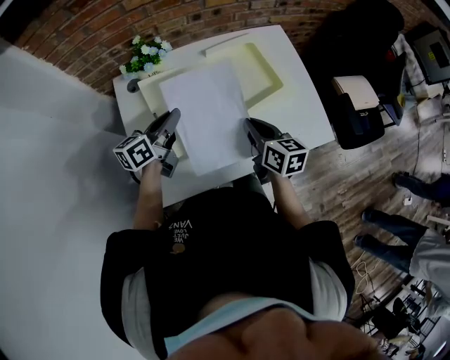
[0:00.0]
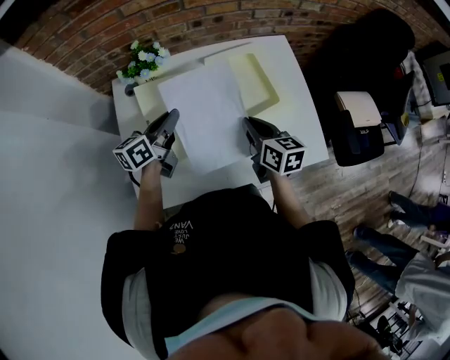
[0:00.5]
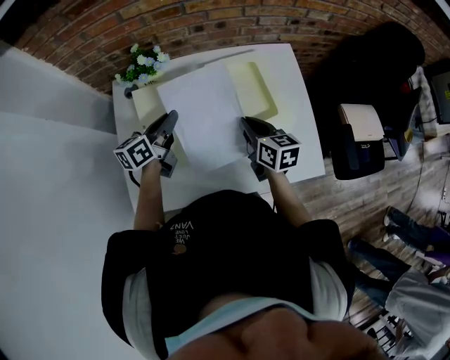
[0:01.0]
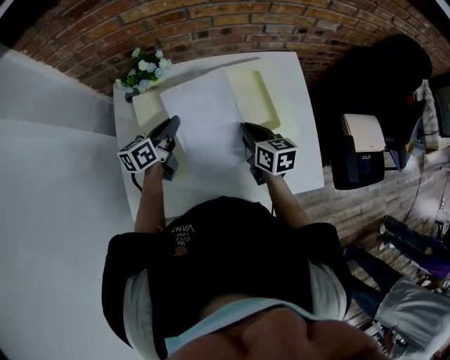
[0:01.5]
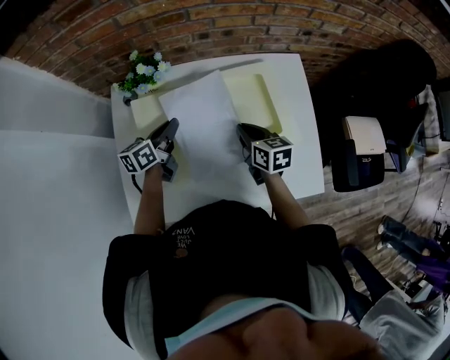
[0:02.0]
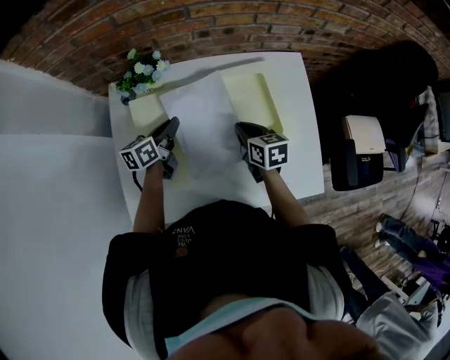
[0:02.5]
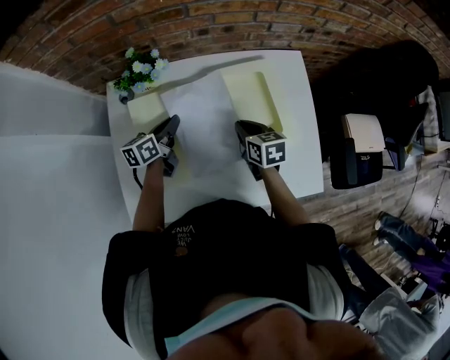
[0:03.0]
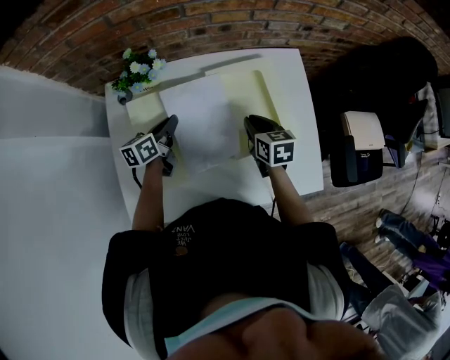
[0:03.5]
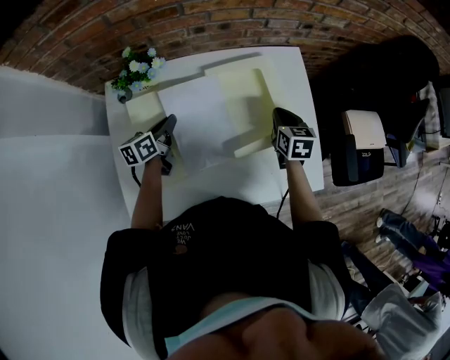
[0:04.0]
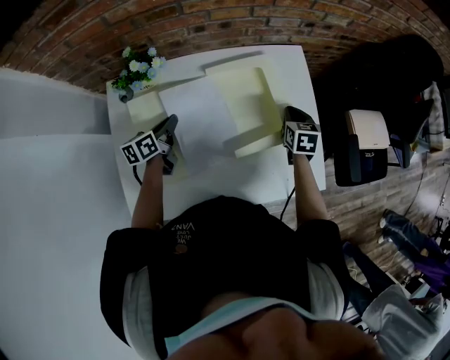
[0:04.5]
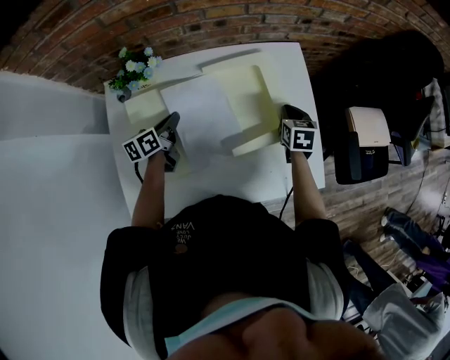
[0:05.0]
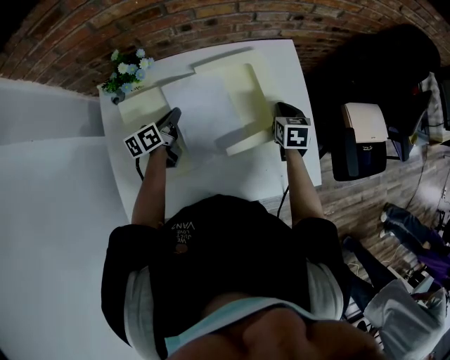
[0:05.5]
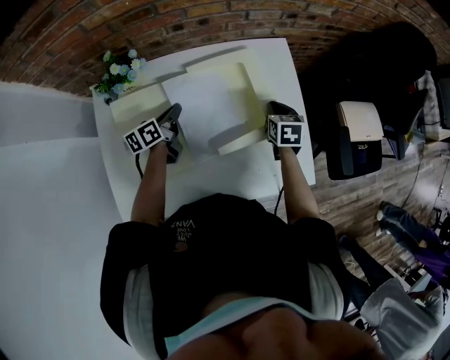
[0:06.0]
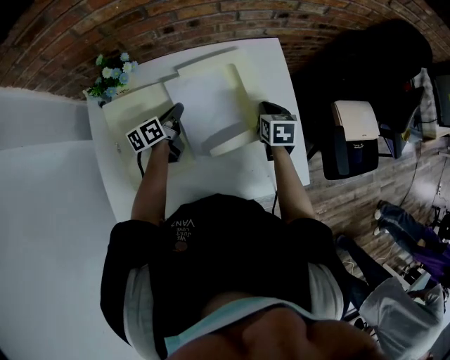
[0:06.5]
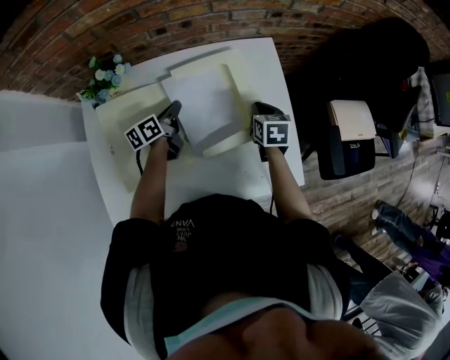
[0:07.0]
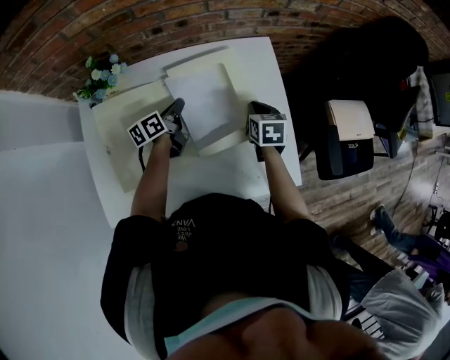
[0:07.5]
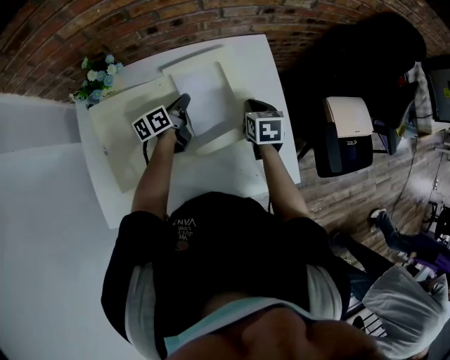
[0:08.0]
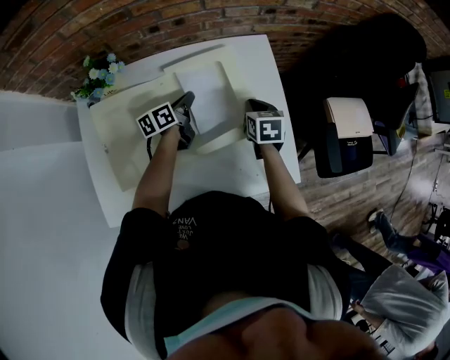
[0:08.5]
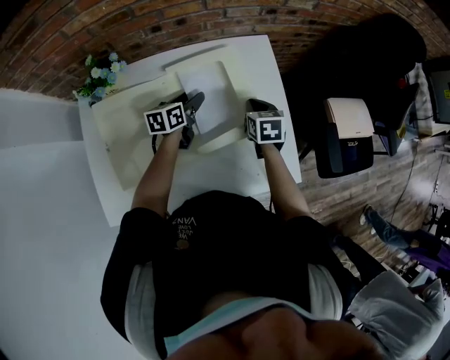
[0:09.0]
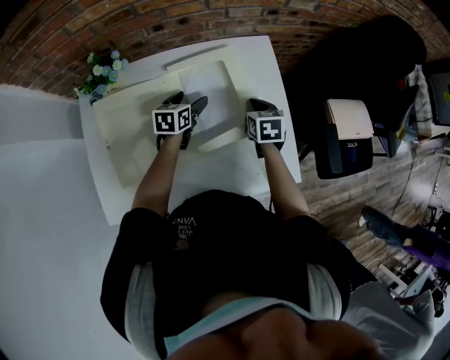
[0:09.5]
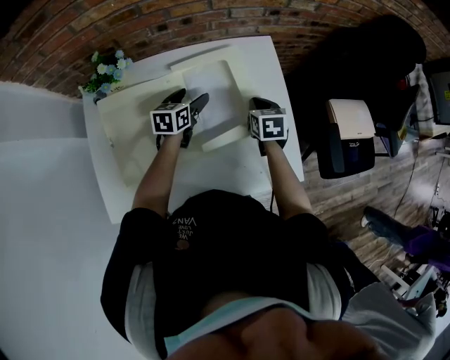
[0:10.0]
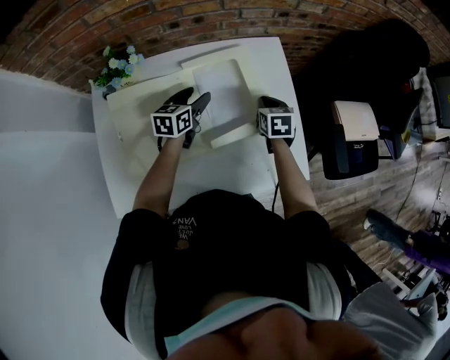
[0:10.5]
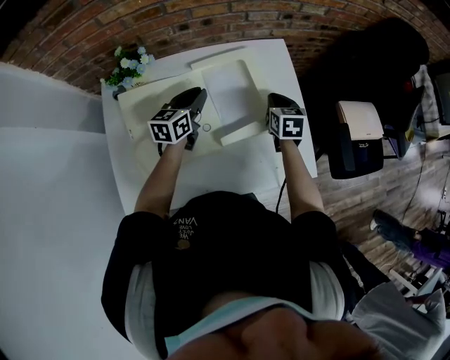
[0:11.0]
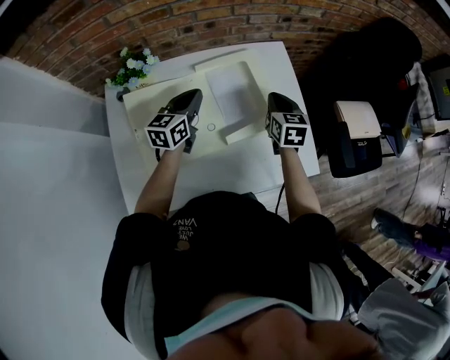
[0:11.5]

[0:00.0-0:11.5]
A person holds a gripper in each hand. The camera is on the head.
0:00.0 to 0:02.0: Both grippers travel together forward and downward, approximately 15 cm.
0:02.0 to 0:04.0: The right gripper shifts some 15 cm to the right, and changes its angle by some 20 degrees.
0:04.0 to 0:06.0: The left gripper goes some 5 cm to the right, while the right gripper ends up about 5 cm from where it was.
0:06.0 to 0:07.5: The left gripper moves to the right, approximately 5 cm.
0:07.5 to 0:09.5: The left gripper heads to the right, covering roughly 5 cm, swivels some 40 degrees, and opens.
0:09.5 to 0:11.5: The right gripper travels upward by roughly 10 cm; the left gripper travels upward, to the left and backward by about 15 cm, swivels approximately 20 degrees, and closes its fingers.

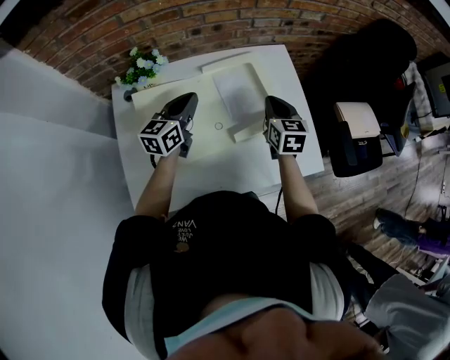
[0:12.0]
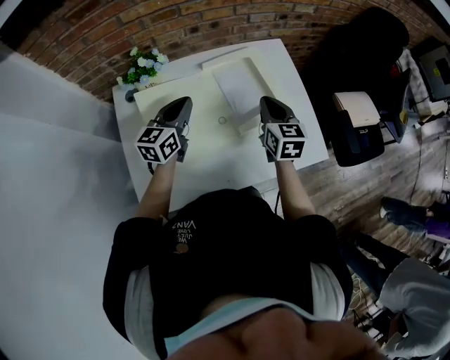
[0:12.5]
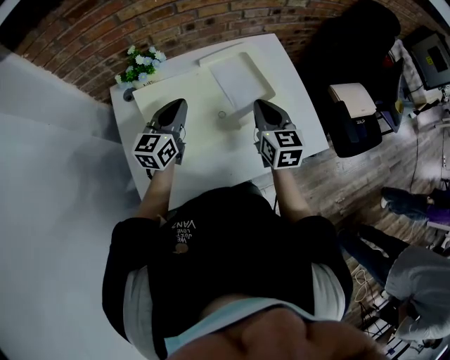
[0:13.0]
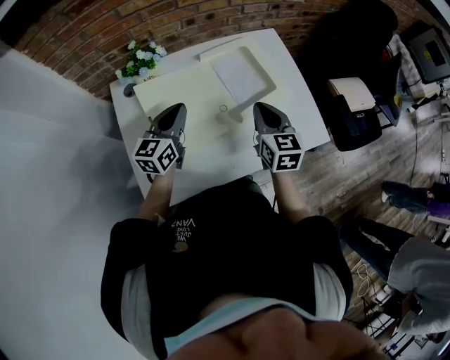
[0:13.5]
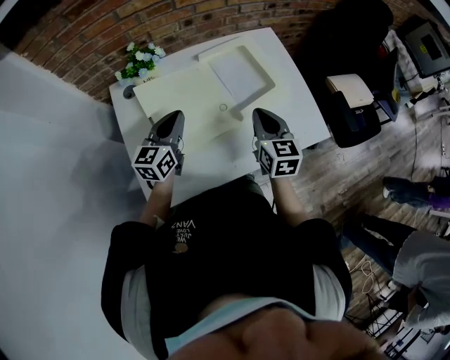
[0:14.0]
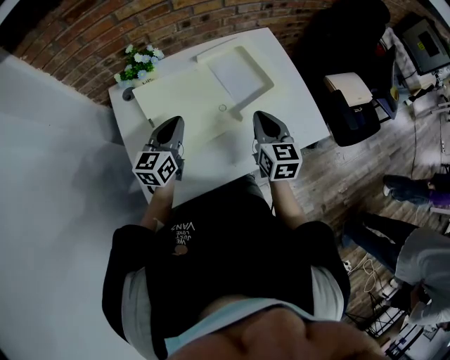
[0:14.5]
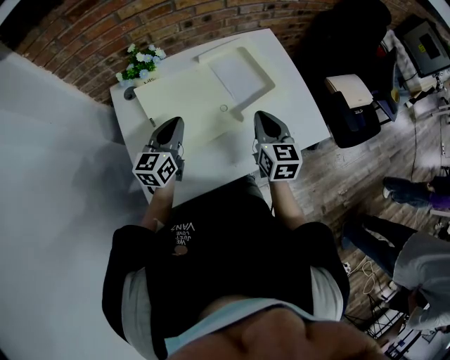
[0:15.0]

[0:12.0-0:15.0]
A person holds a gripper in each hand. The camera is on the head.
0:12.0 to 0:13.5: The right gripper is displaced backward and to the left by approximately 15 cm. Meanwhile the left gripper moves backward, about 10 cm.
0:13.5 to 0:15.0: The grippers move only a little.

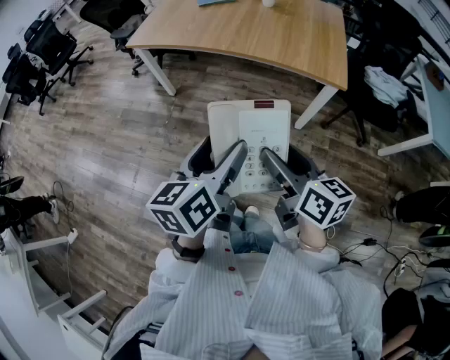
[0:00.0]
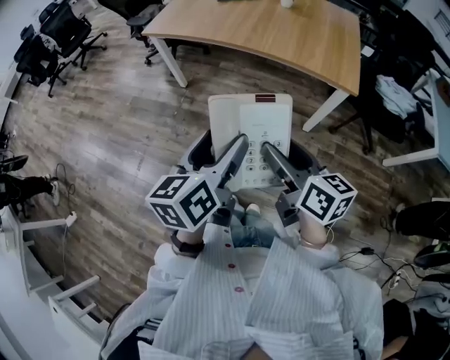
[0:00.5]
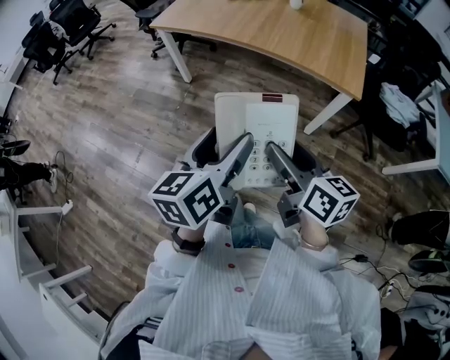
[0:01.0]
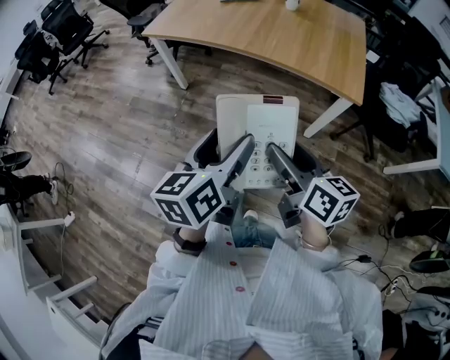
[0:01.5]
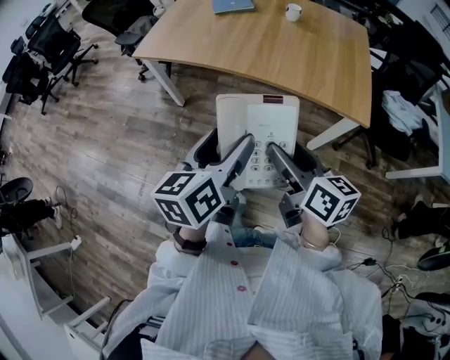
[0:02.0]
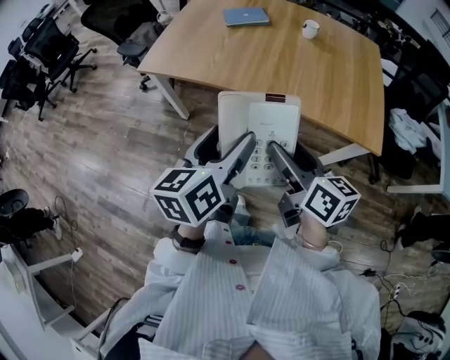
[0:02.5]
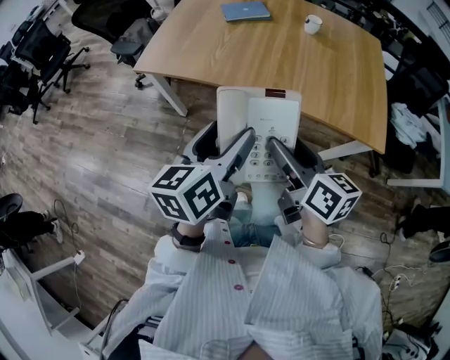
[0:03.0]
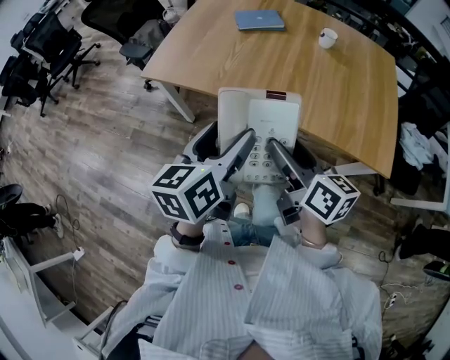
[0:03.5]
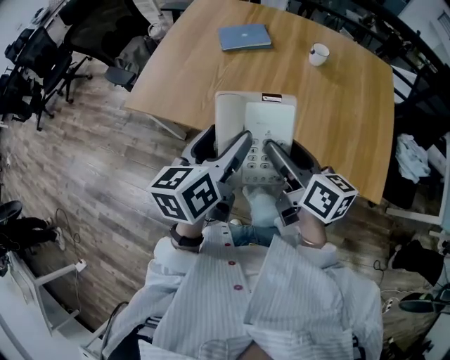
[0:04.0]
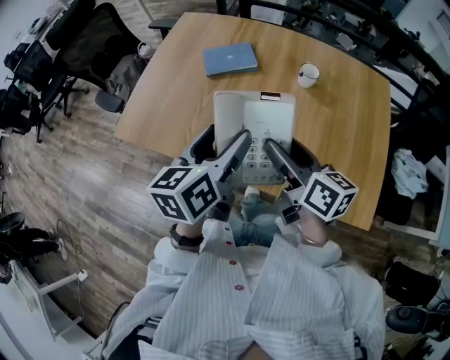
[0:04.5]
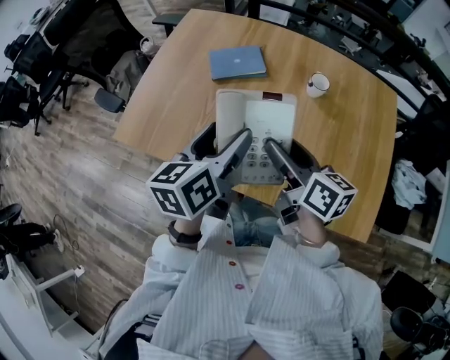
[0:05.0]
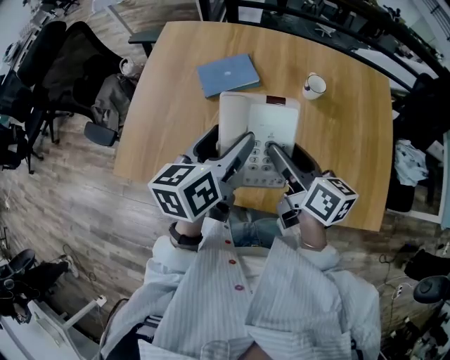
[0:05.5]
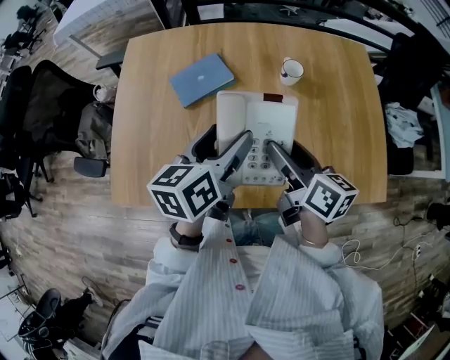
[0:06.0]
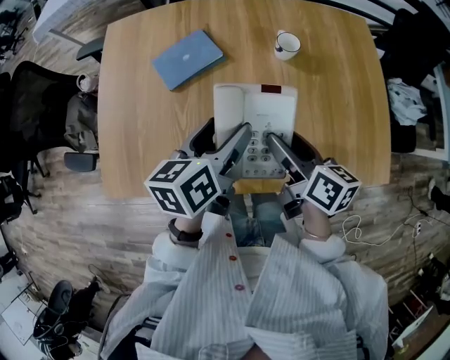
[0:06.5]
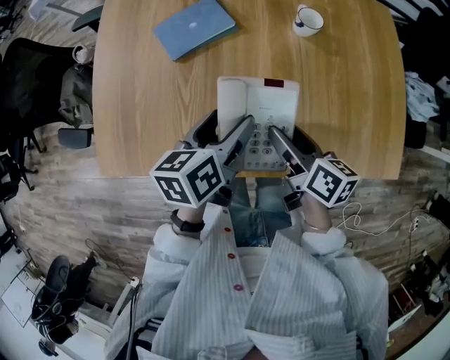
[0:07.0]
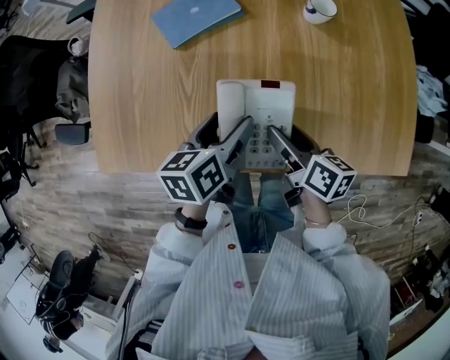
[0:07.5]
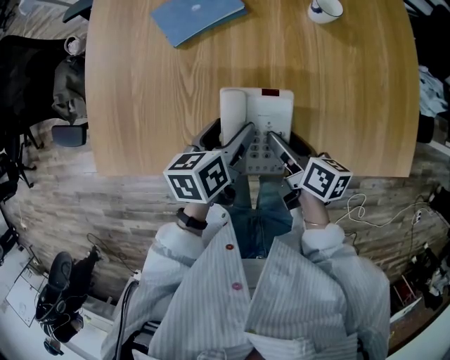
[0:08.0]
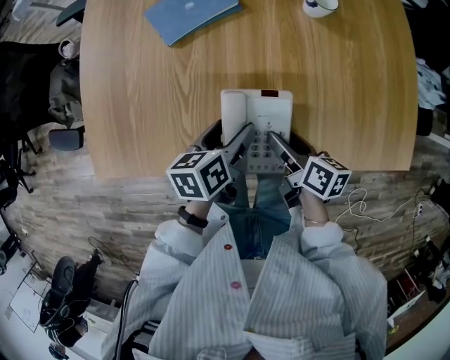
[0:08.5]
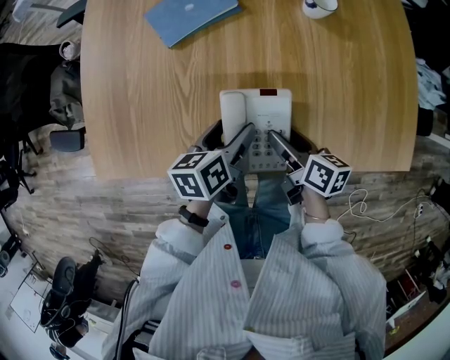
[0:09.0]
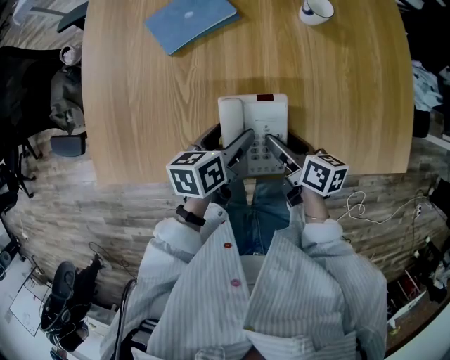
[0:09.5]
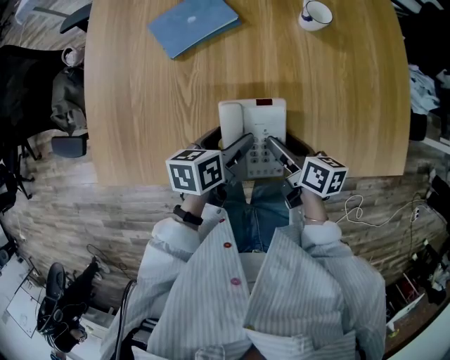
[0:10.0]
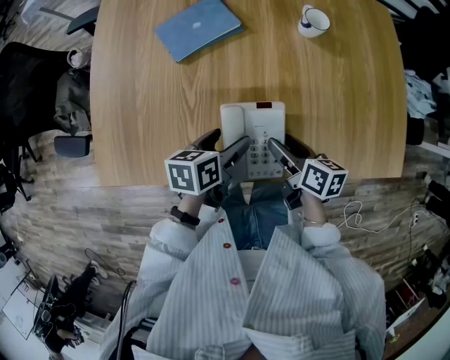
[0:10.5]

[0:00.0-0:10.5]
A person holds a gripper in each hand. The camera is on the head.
0:00.0 to 0:02.0: The grippers both shift forward by approximately 20 cm.
0:02.0 to 0:04.0: Both grippers move forward, approximately 35 cm.
0:04.0 to 0:06.5: The two grippers go roughly 25 cm forward. The left gripper swivels approximately 30 degrees. Meanwhile the right gripper changes its angle by some 20 degrees.
0:06.5 to 0:08.5: The two grippers go some 20 cm downward.
0:08.5 to 0:10.5: The grippers stay close to where they were, moving slightly.

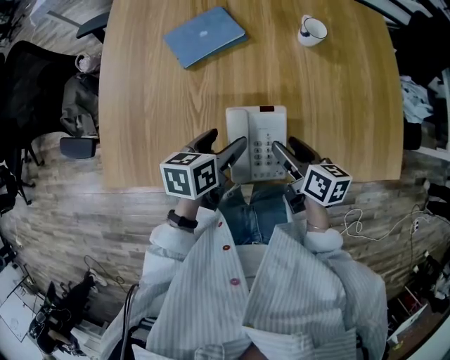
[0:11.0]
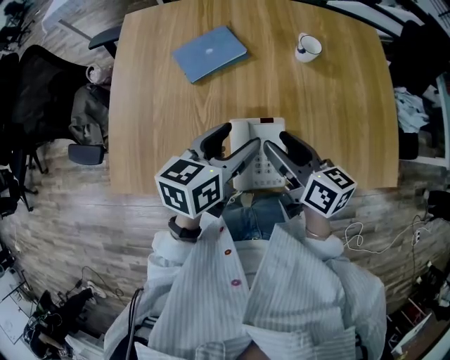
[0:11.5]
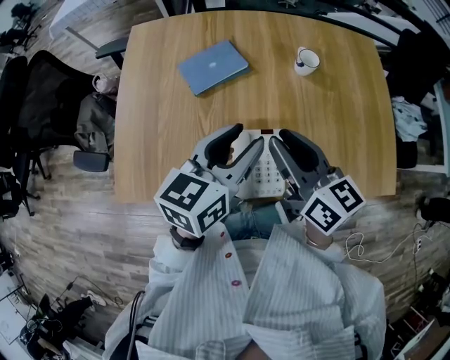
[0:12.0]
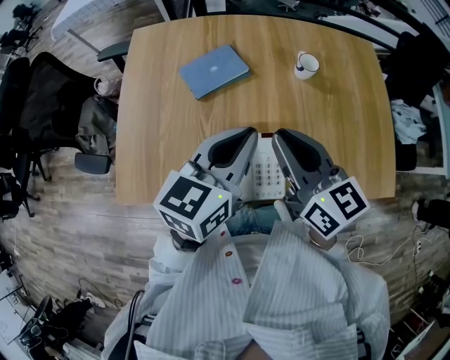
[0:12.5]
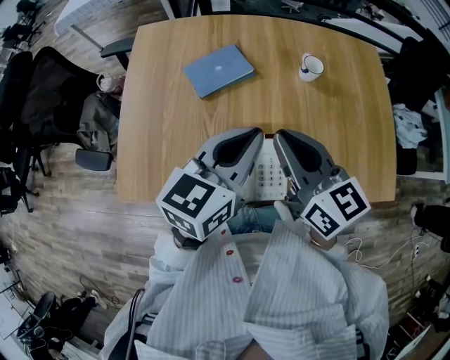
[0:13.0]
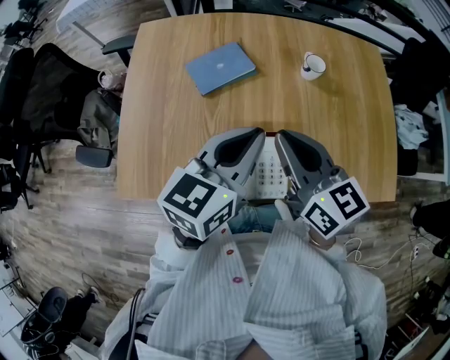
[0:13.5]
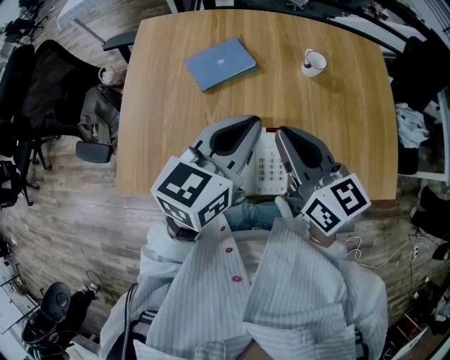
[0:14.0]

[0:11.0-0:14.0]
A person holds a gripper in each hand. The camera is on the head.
0:11.0 to 0:12.5: The two grippers go approximately 20 cm upward. The left gripper swivels about 40 degrees, and closes. Meanwhile the right gripper changes its angle by approximately 40 degrees, and closes its fingers.
0:12.5 to 0:14.0: The two grippers keep their place.
